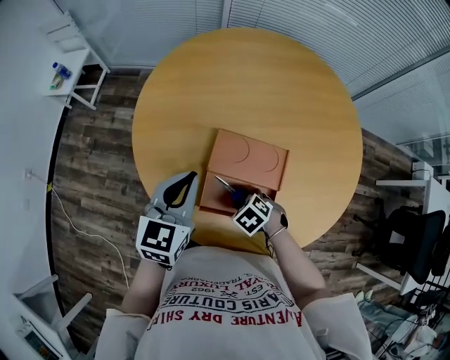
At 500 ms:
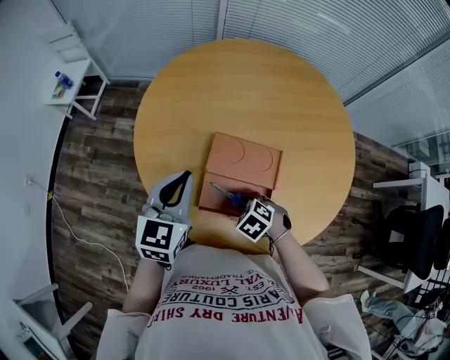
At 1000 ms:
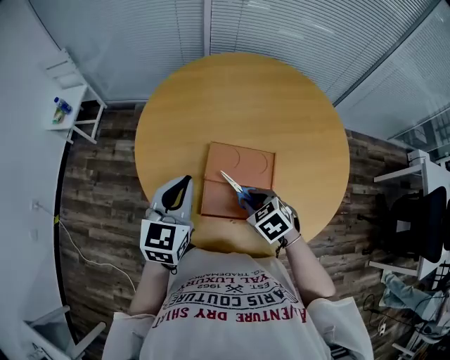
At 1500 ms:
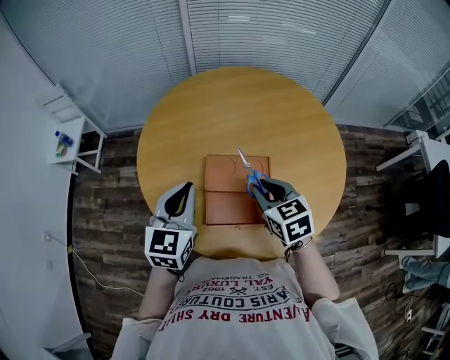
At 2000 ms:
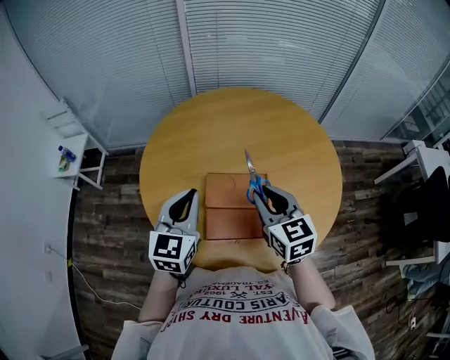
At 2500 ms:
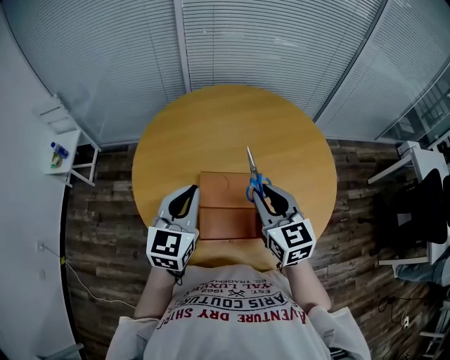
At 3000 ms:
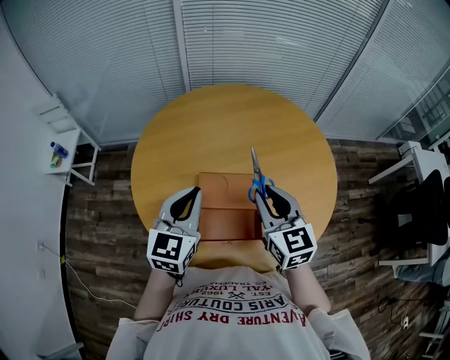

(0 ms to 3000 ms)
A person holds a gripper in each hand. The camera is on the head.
0 ms - 1500 ms: The left gripper moves upward, roughly 5 cm. The right gripper moves upward, roughly 25 cm, and tips its fingers upward by some 40 degrees.
1500 ms - 3000 ms: The left gripper moves some 5 cm. The right gripper travels upward by about 10 cm, and rotates some 20 degrees.

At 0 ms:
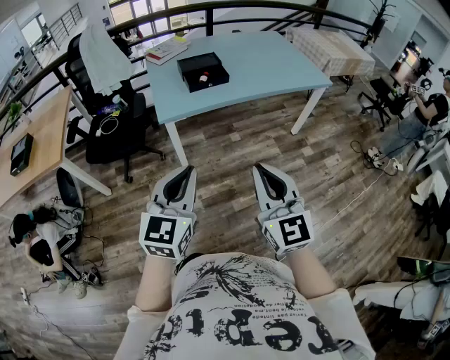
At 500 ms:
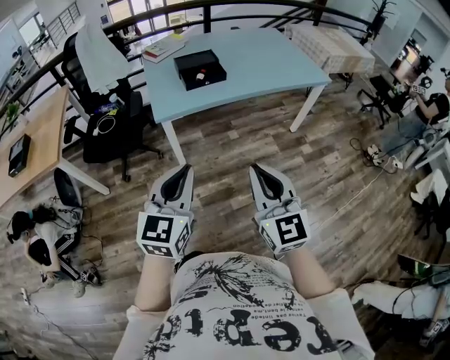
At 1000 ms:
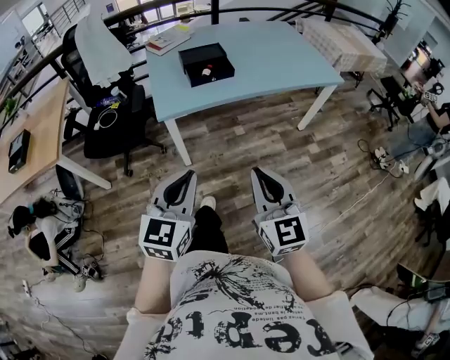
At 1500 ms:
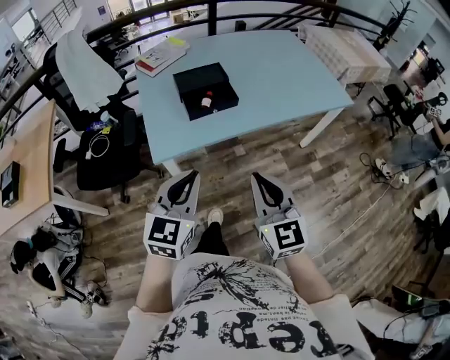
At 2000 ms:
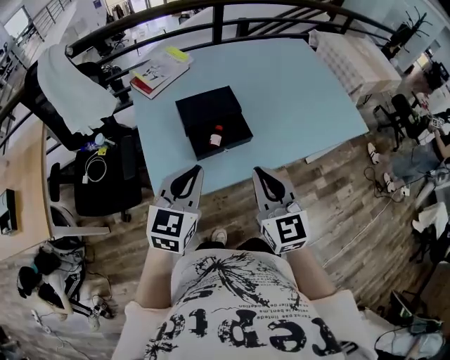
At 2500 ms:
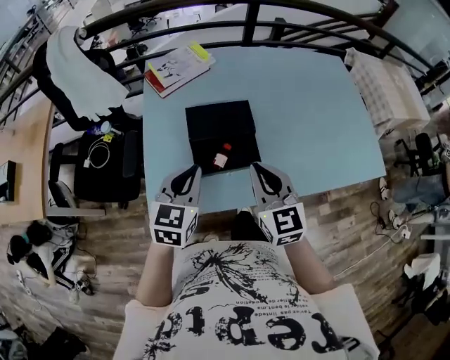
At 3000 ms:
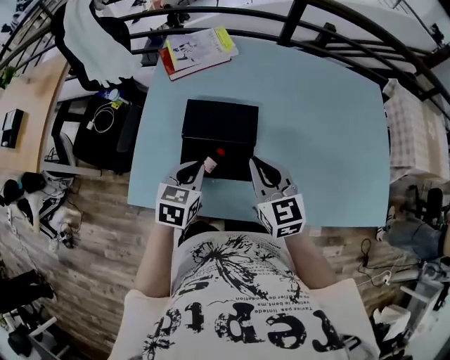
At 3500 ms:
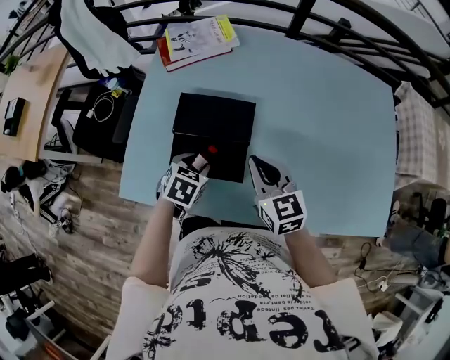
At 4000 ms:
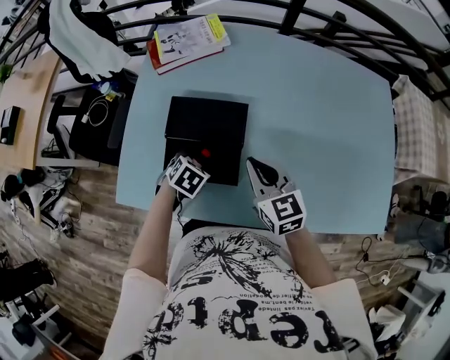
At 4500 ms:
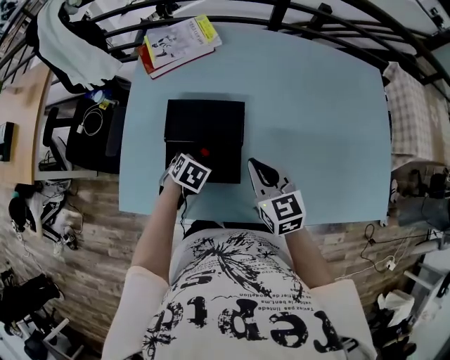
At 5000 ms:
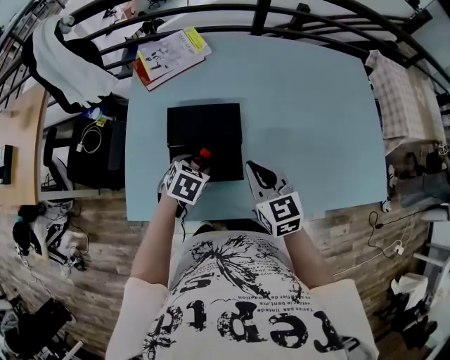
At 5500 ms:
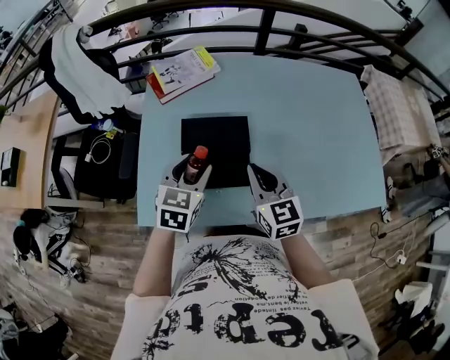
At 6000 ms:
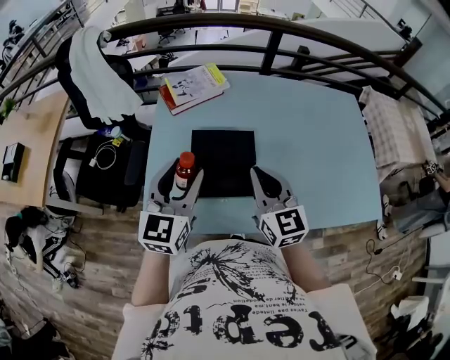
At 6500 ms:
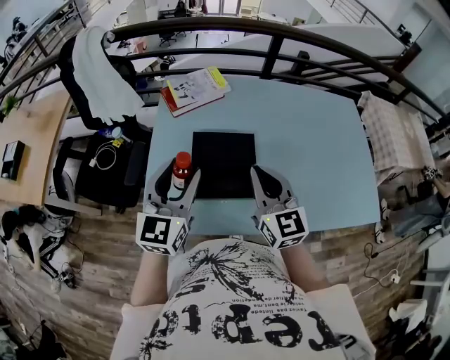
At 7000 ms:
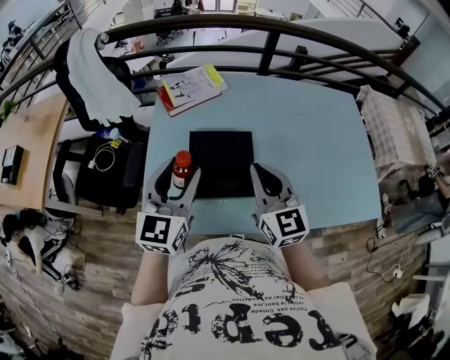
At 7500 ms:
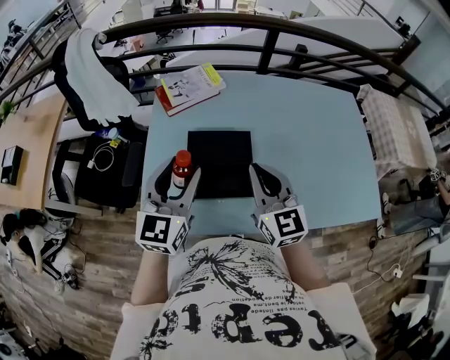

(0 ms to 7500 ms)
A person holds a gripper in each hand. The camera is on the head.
0 ms - 2000 ms: Both grippers are carried forward, about 50 cm.
2000 ms - 4000 ms: The left gripper moves downward, about 30 cm, tips its fingers downward by about 50 degrees, and opens; the right gripper moves about 35 cm, and turns by some 40 degrees.
4000 ms - 5500 ms: The right gripper goes some 10 cm upward and backward, while the left gripper is displaced upward by about 20 cm, and angles its fingers upward, by some 40 degrees.
5500 ms - 7500 ms: The two grippers go approximately 10 cm upward. The left gripper rotates roughly 30 degrees.

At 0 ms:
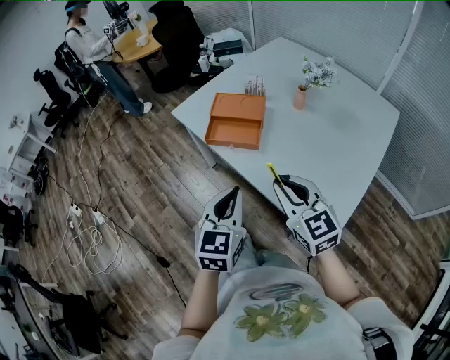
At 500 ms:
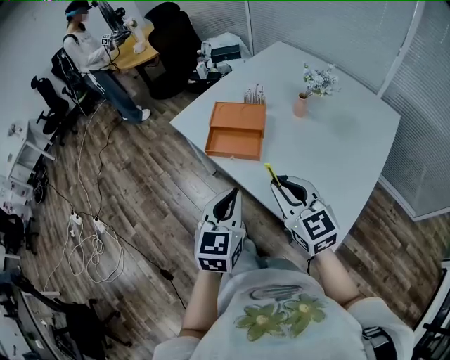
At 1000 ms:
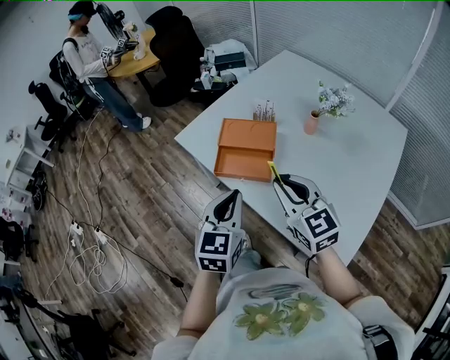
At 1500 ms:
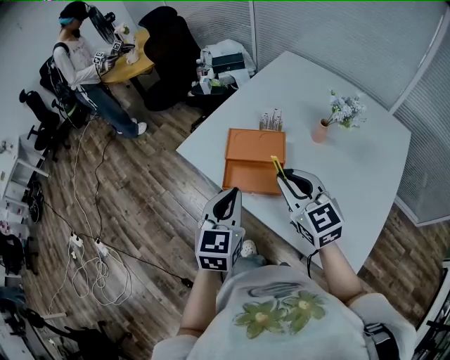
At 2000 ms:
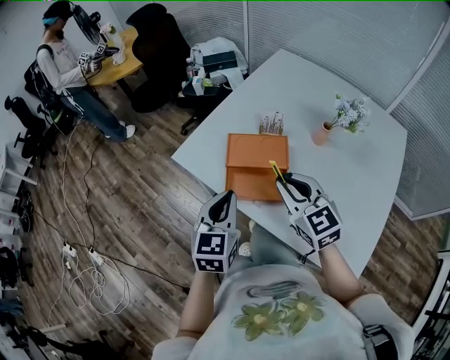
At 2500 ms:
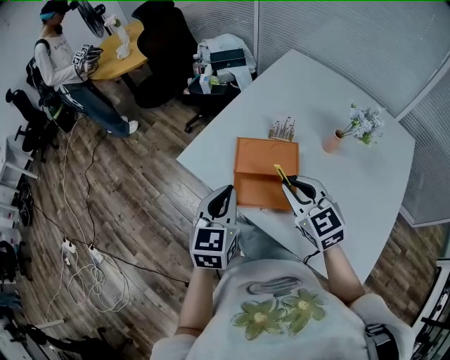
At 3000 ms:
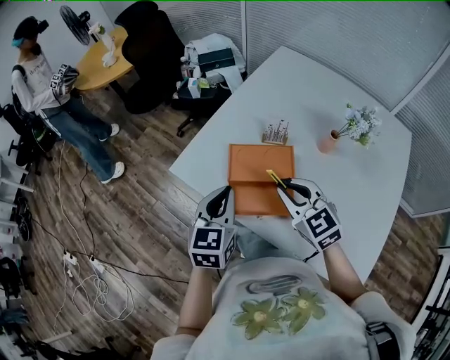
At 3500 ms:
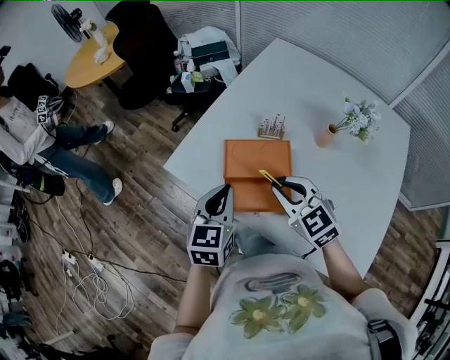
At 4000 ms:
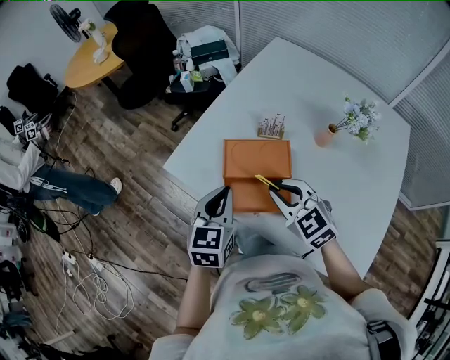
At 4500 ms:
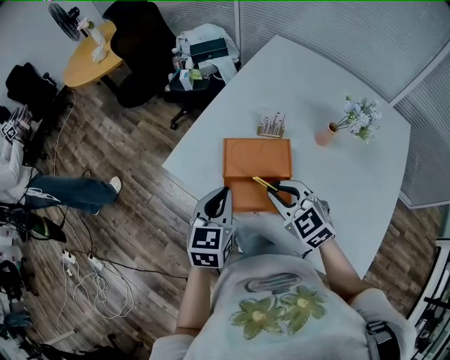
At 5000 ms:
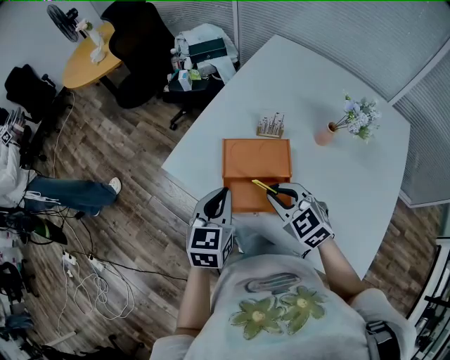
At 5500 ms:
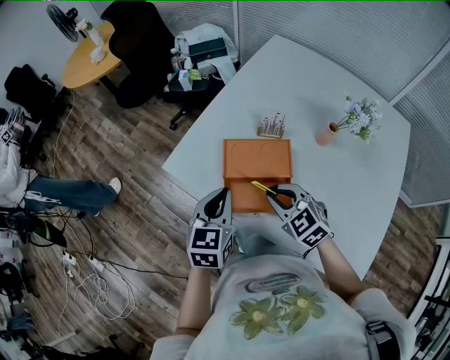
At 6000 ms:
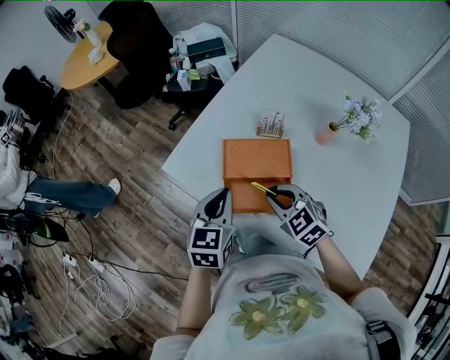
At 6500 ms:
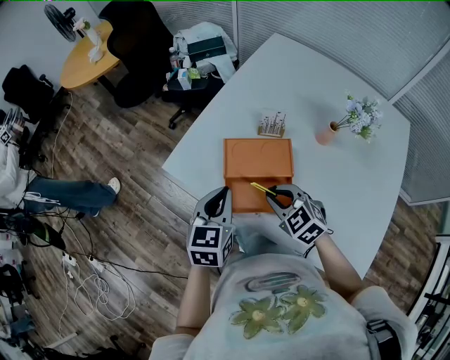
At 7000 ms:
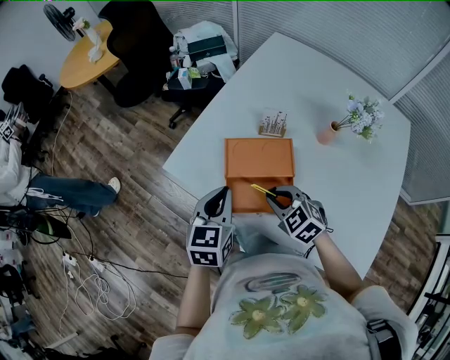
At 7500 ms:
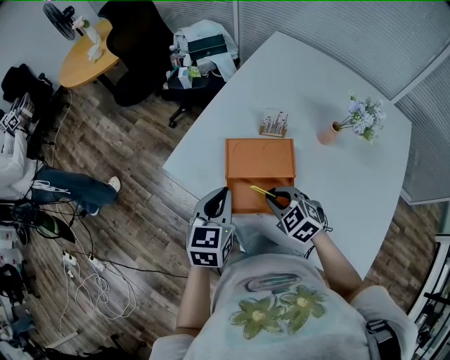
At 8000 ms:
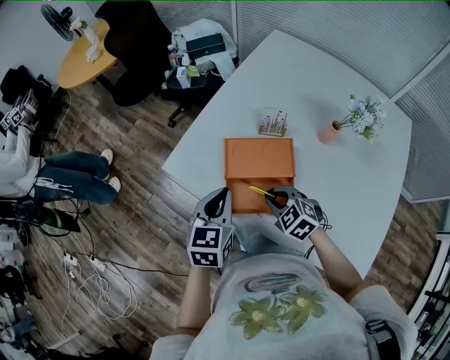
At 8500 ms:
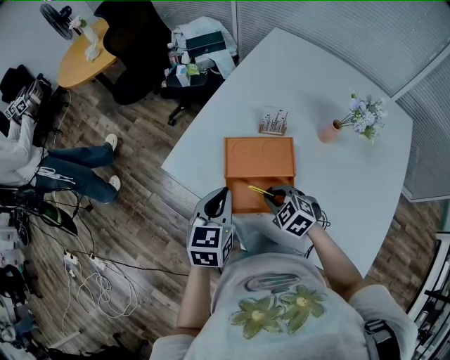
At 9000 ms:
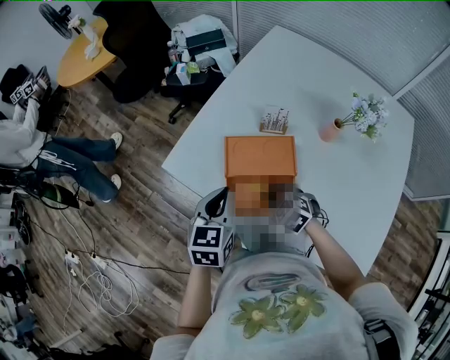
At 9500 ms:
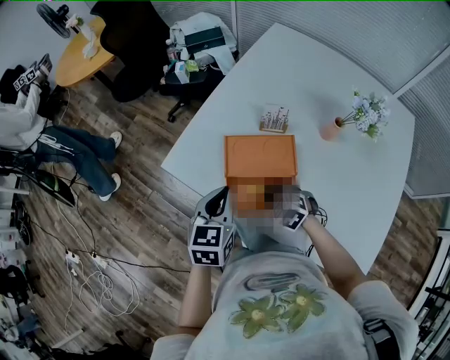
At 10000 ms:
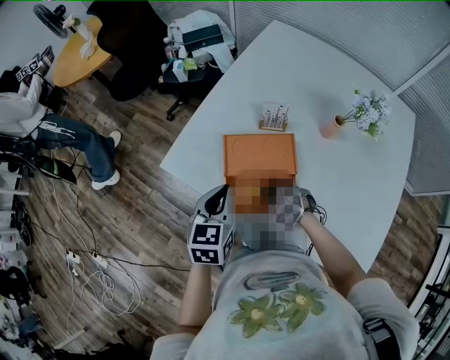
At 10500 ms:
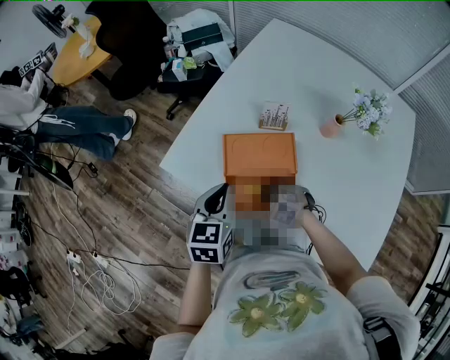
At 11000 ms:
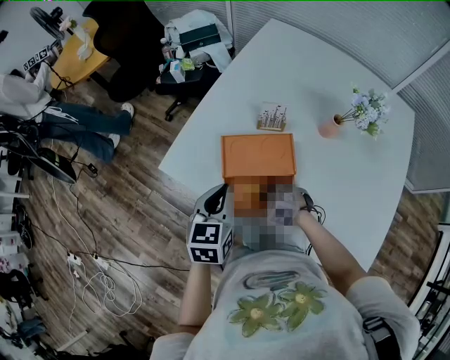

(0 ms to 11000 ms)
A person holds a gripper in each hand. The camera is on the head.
0 ms - 2000 ms: Both grippers move forward, about 30 cm.
2000 ms - 3500 ms: The left gripper travels forward by some 10 cm. Meanwhile the right gripper moves forward and downward, about 10 cm.
3500 ms - 5500 ms: The right gripper is displaced downward by about 5 cm.
5500 ms - 7500 ms: The right gripper goes approximately 5 cm downward.
7500 ms - 9000 ms: The right gripper moves downward, about 5 cm.
9000 ms - 11000 ms: The right gripper is displaced downward by about 5 cm.

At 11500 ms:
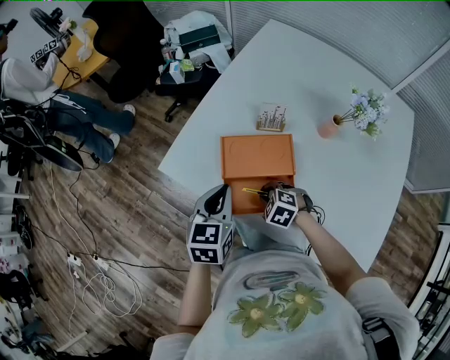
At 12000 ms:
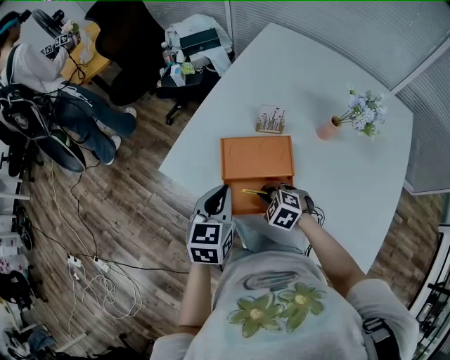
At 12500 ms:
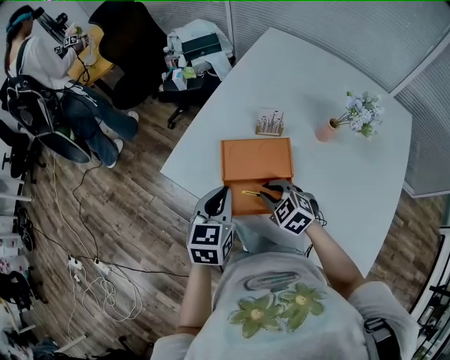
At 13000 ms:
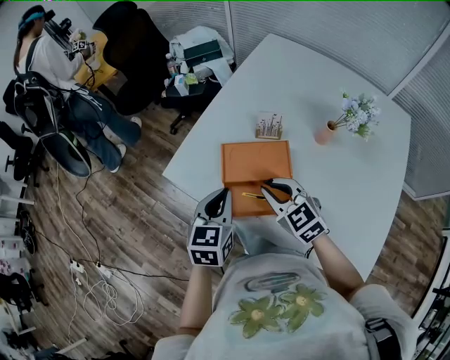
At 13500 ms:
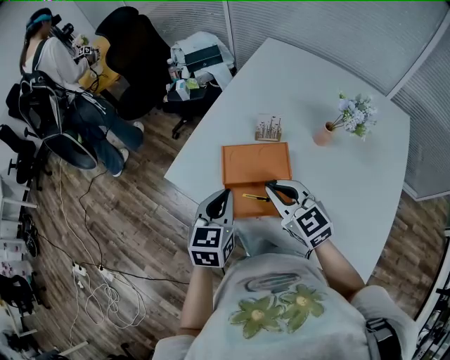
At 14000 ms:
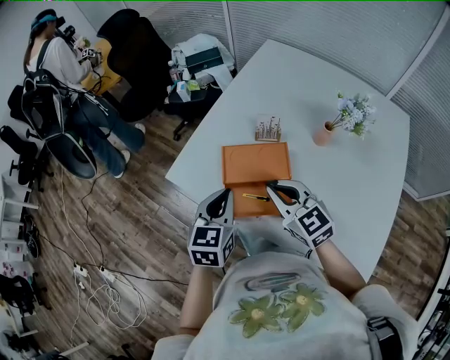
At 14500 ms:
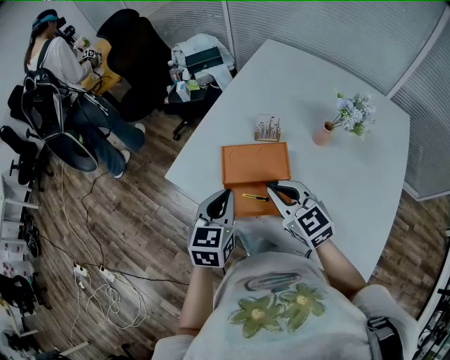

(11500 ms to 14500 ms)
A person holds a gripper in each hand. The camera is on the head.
11500 ms - 13000 ms: The right gripper shifts roughly 20 cm upward, and tips its fingers upward by some 40 degrees.
13000 ms - 14500 ms: The right gripper moves about 5 cm.

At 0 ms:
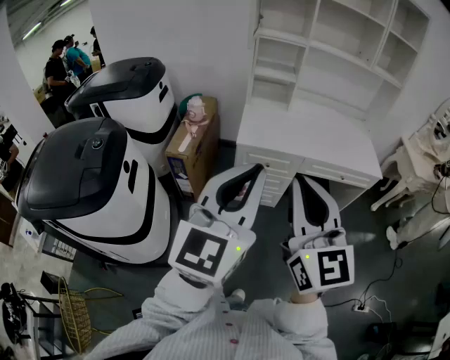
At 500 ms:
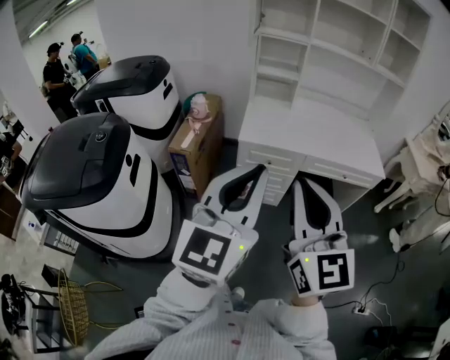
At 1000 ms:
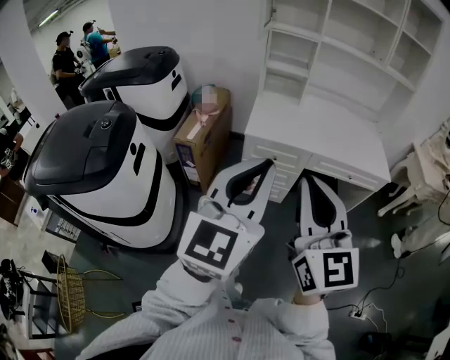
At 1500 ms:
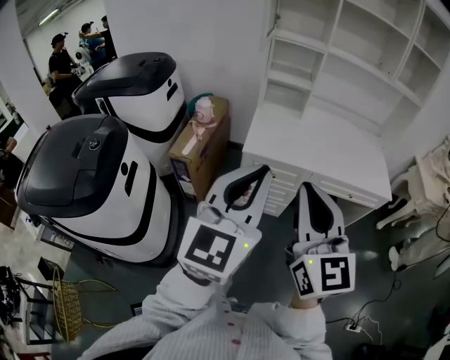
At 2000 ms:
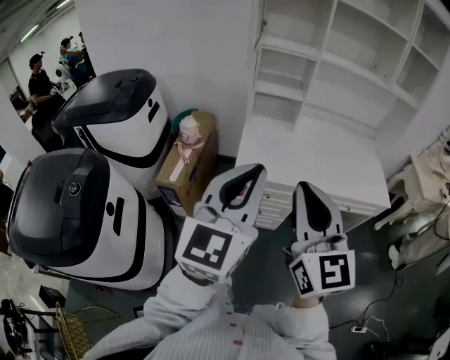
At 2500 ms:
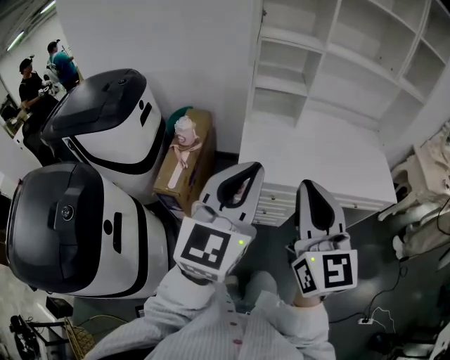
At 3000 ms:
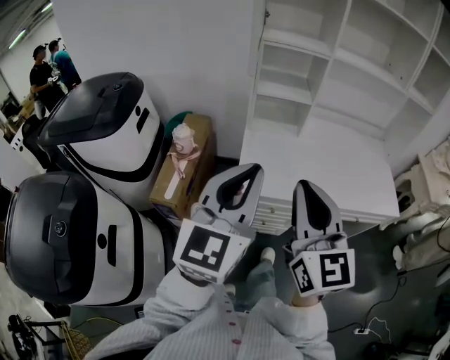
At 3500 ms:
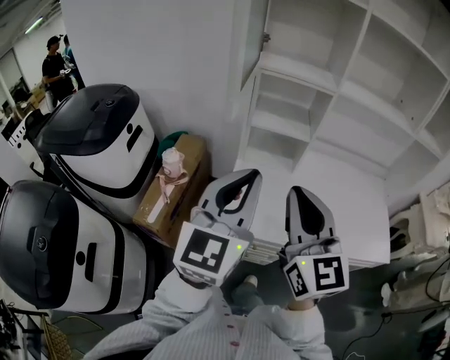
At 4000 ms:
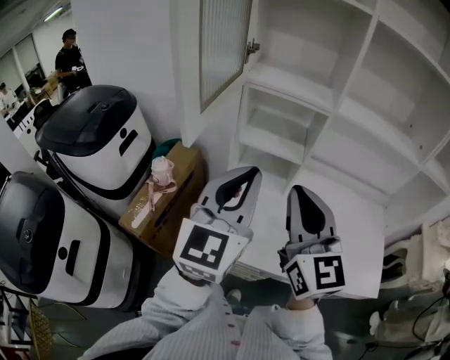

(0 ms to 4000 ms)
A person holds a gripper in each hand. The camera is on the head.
0 ms - 2000 ms: The grippers both shift forward by about 20 cm.
2000 ms - 4000 ms: Both grippers travel together forward, some 35 cm.
